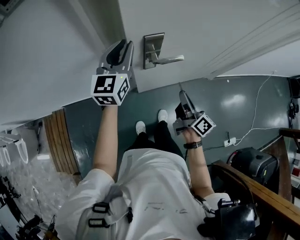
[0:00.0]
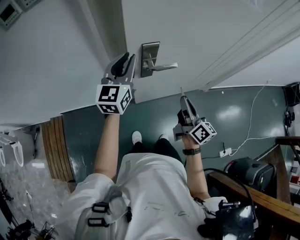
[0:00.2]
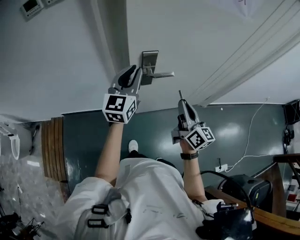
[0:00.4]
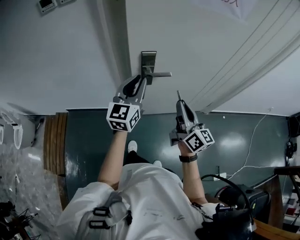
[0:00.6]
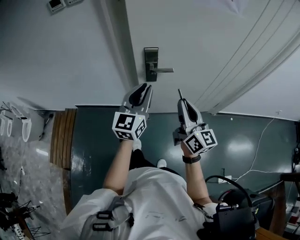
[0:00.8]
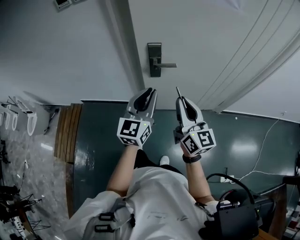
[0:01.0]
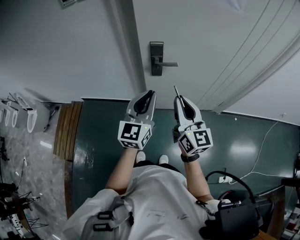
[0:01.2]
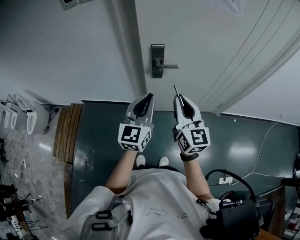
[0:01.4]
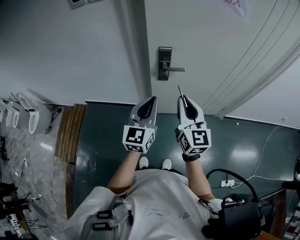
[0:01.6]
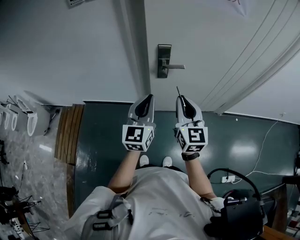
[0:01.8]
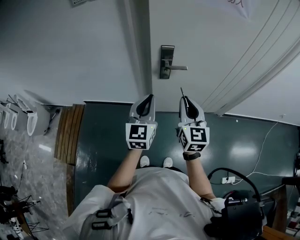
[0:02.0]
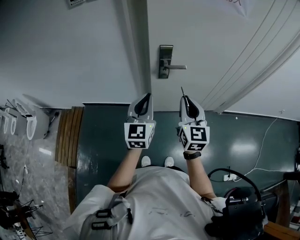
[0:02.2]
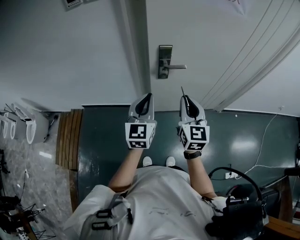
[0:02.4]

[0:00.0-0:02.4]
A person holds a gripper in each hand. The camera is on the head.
0:00.0 to 0:01.2: The right gripper travels upward and backward by some 25 cm, and twists roughly 40 degrees counterclockwise, seen from behind. The left gripper travels backward and to the right by approximately 30 cm.
0:01.2 to 0:02.4: The right gripper changes place by about 5 cm, and swivels about 20 degrees, while the left gripper heads to the left, covering some 10 cm.

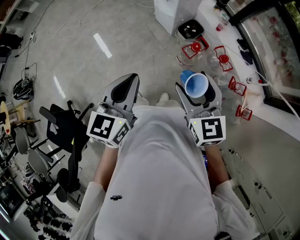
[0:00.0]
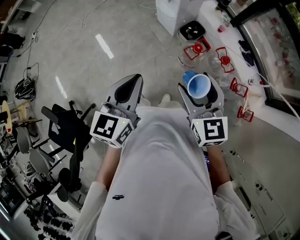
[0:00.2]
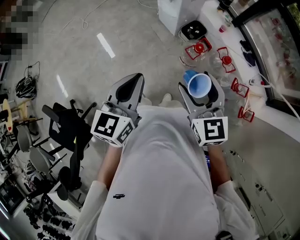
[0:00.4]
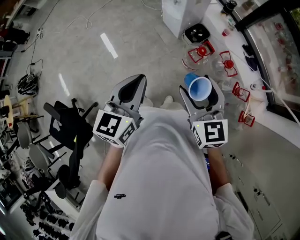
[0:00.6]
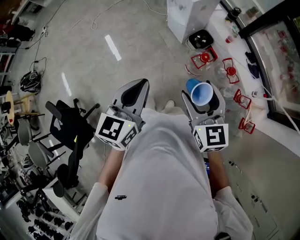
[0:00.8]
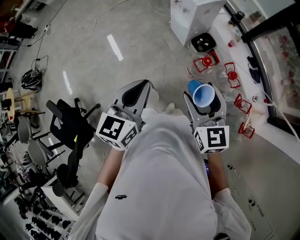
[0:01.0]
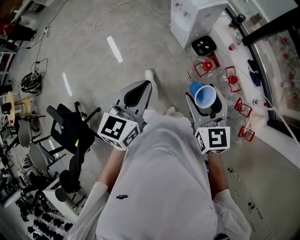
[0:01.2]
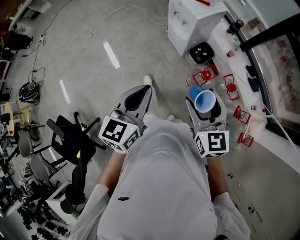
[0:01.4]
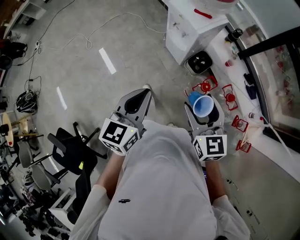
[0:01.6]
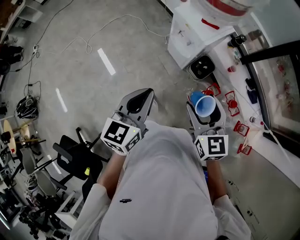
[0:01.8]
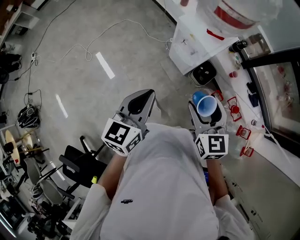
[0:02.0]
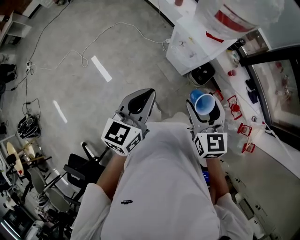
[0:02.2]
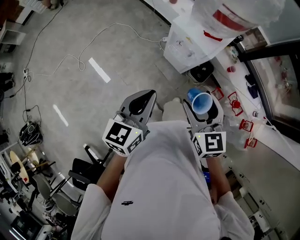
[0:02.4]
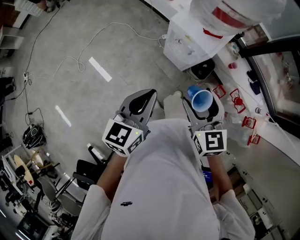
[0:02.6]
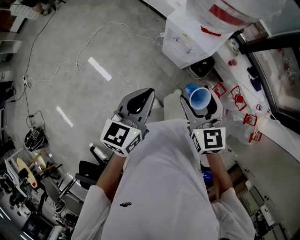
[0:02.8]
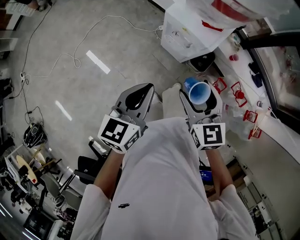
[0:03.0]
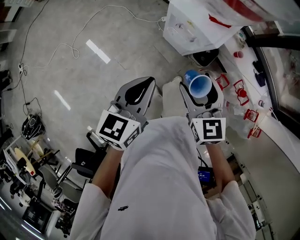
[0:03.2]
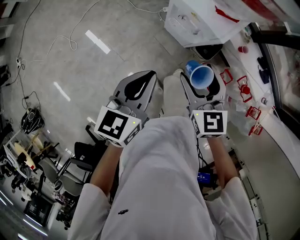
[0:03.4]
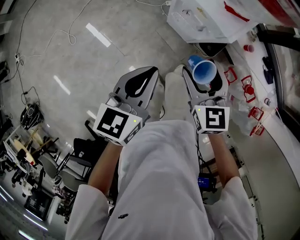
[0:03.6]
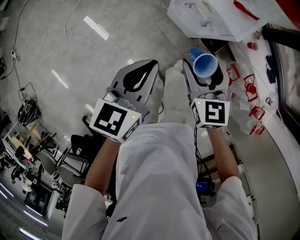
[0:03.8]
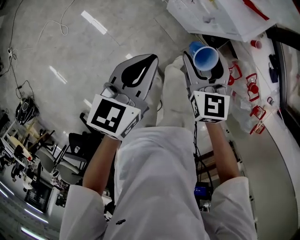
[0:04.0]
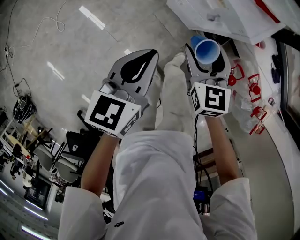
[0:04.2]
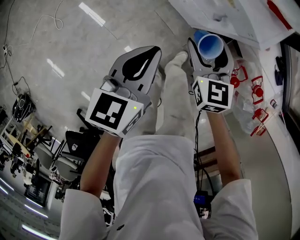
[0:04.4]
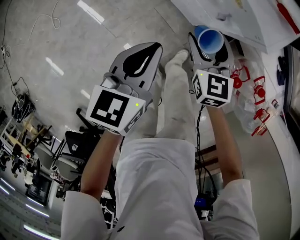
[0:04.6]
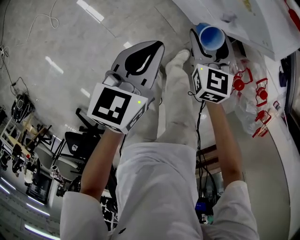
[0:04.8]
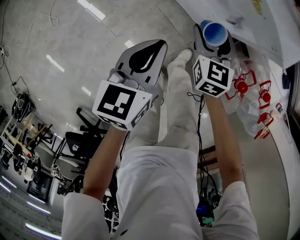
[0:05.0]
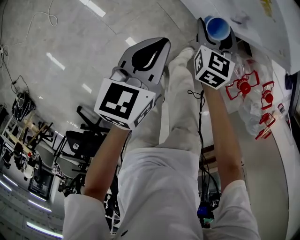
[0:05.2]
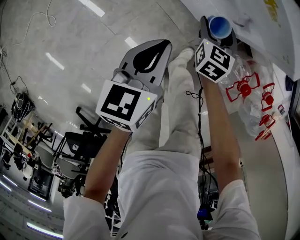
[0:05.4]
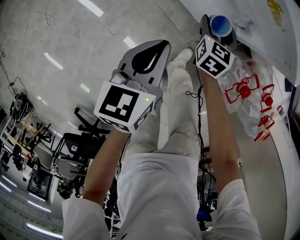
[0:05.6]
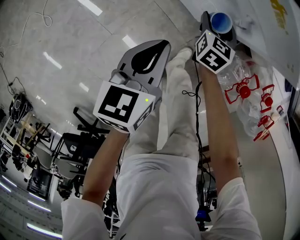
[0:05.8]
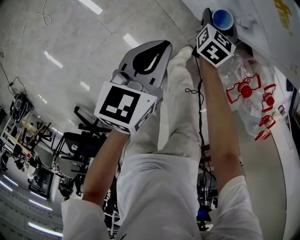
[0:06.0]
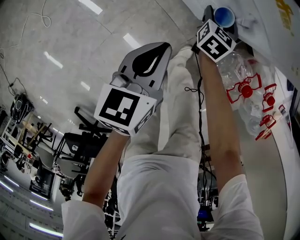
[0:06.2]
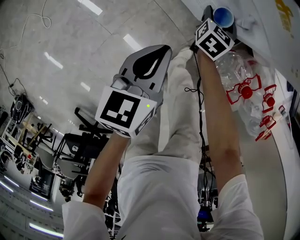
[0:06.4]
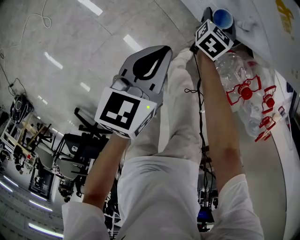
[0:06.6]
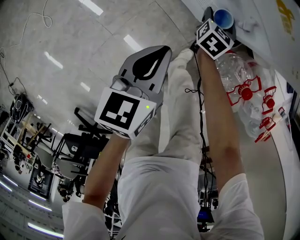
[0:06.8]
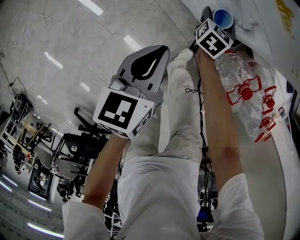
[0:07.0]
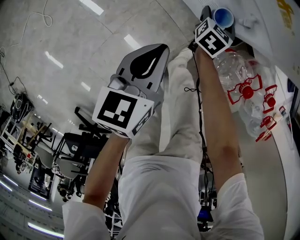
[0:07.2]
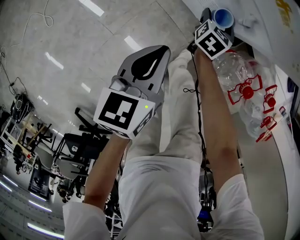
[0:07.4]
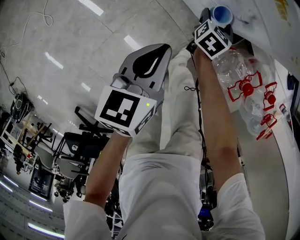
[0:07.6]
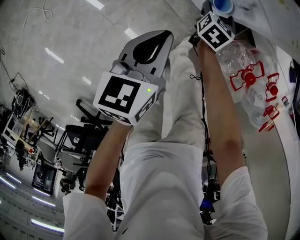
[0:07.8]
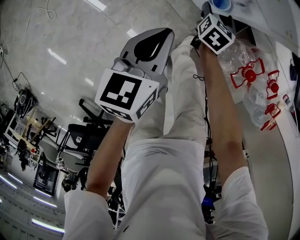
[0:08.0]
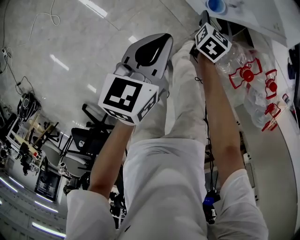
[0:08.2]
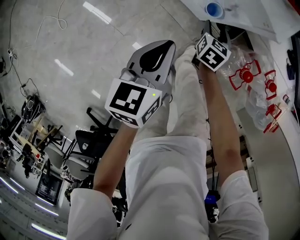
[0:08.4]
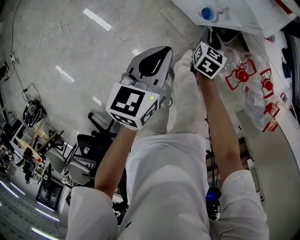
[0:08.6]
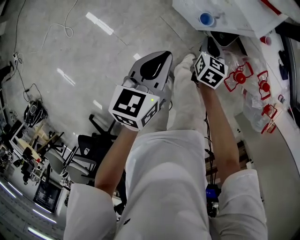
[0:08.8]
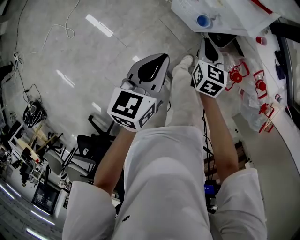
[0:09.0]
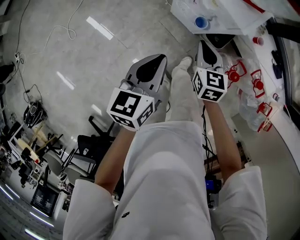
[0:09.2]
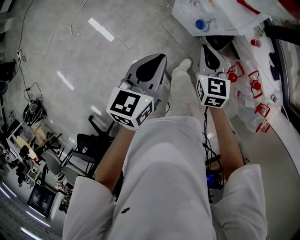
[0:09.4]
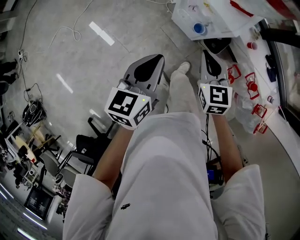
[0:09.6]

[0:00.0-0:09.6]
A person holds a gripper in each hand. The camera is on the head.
0:00.0 to 0:01.6: Both grippers travel together forward, approximately 20 cm.
0:01.6 to 0:03.2: The grippers both shift forward and to the left by approximately 25 cm.
0:03.2 to 0:04.8: The right gripper heads downward and forward, covering approximately 35 cm. Meanwhile the left gripper goes approximately 25 cm downward.
0:04.8 to 0:06.4: The left gripper heads downward, covering about 10 cm. Meanwhile the right gripper is displaced downward and forward by about 20 cm, and turns by approximately 30 degrees.
0:06.4 to 0:08.0: The right gripper ends up roughly 5 cm from where it was.
0:08.0 to 0:09.6: The right gripper heads upward, covering roughly 35 cm, changes its angle by roughly 40 degrees, and closes up, while the left gripper shifts approximately 20 cm upward.

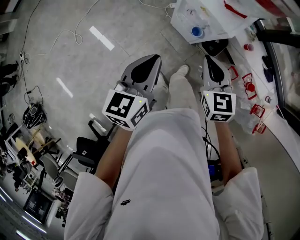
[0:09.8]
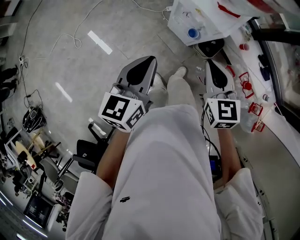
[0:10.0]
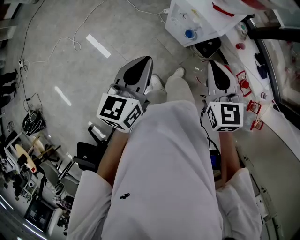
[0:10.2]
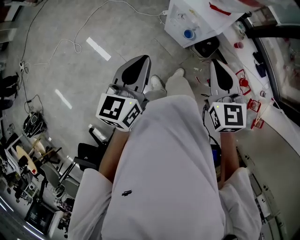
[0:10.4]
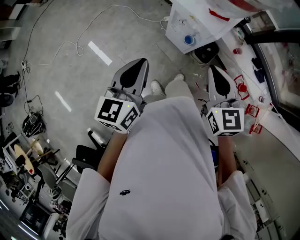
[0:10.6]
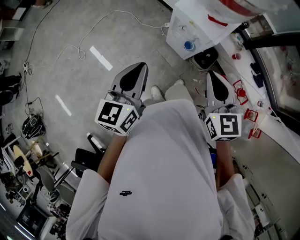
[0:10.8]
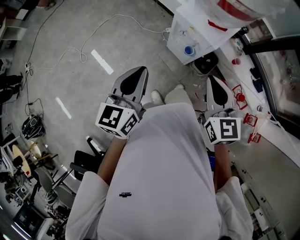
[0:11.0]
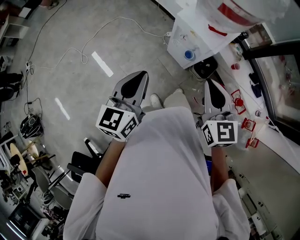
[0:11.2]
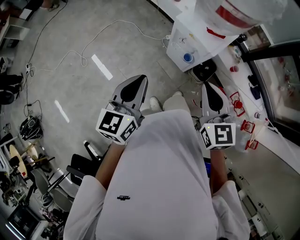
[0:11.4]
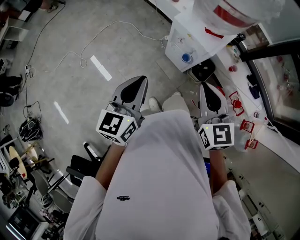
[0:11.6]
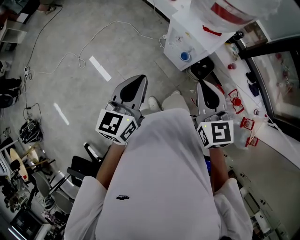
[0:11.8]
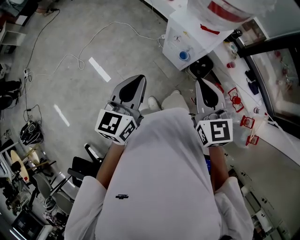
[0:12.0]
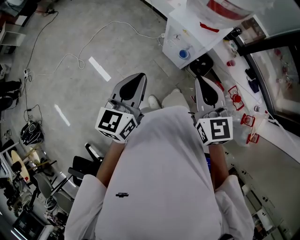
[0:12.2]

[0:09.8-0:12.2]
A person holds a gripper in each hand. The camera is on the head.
0:09.8 to 0:11.0: The left gripper heads upward, covering roughly 10 cm, while the right gripper shifts some 15 cm upward and backward.
0:11.0 to 0:12.2: The grippers move only a little.

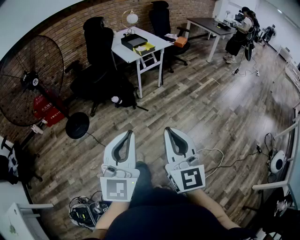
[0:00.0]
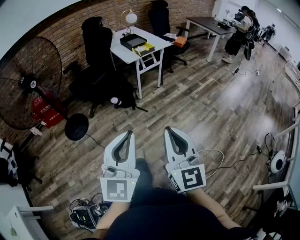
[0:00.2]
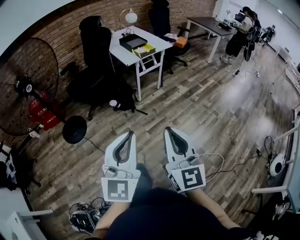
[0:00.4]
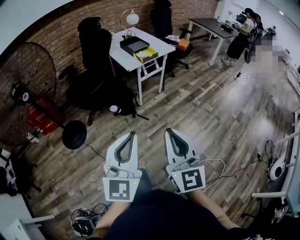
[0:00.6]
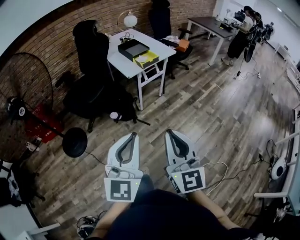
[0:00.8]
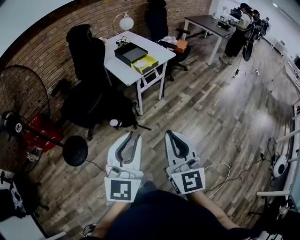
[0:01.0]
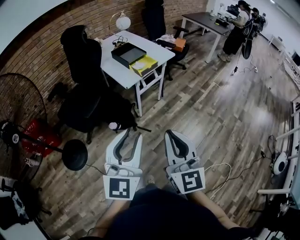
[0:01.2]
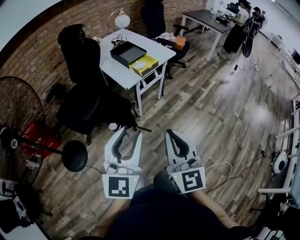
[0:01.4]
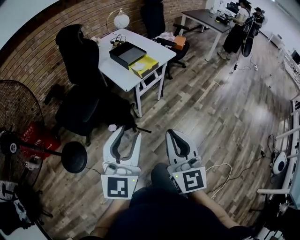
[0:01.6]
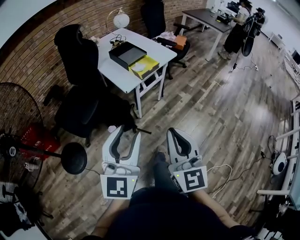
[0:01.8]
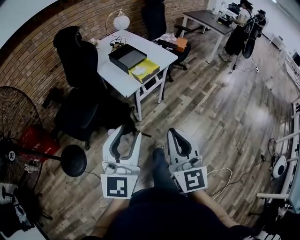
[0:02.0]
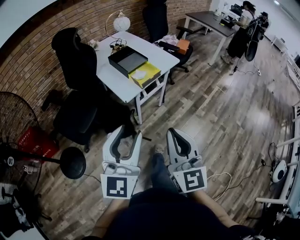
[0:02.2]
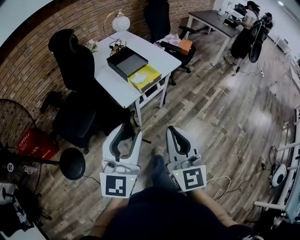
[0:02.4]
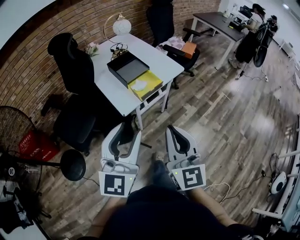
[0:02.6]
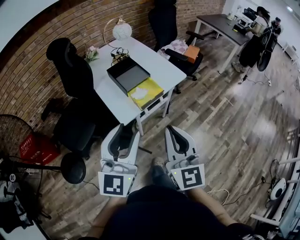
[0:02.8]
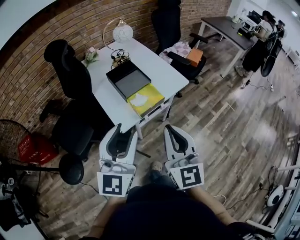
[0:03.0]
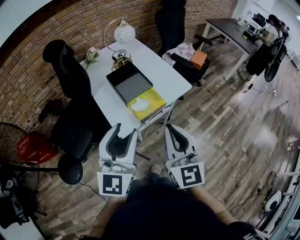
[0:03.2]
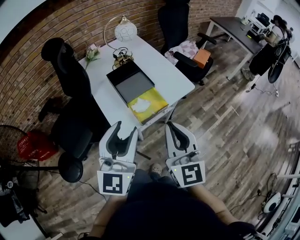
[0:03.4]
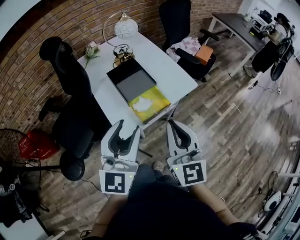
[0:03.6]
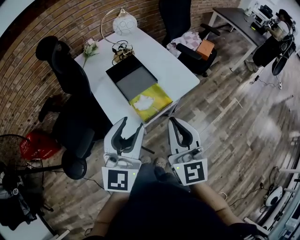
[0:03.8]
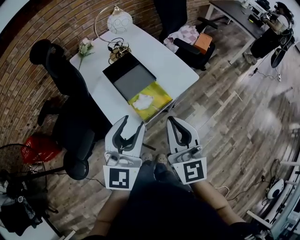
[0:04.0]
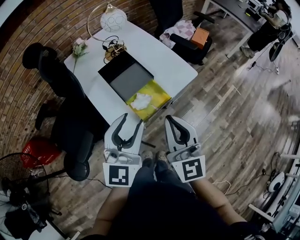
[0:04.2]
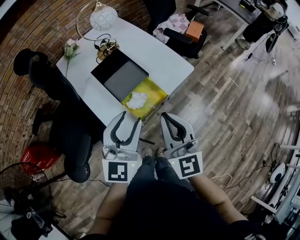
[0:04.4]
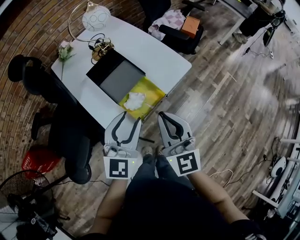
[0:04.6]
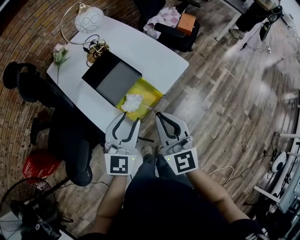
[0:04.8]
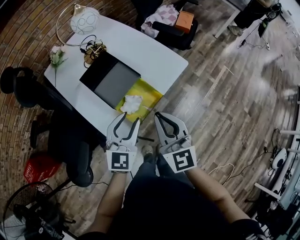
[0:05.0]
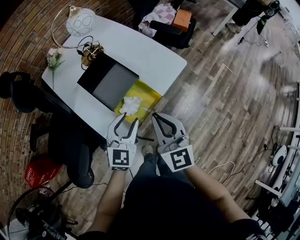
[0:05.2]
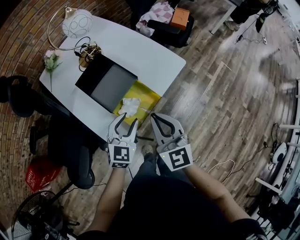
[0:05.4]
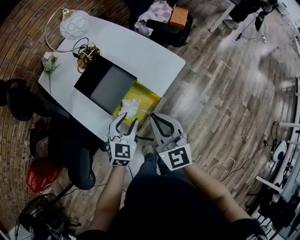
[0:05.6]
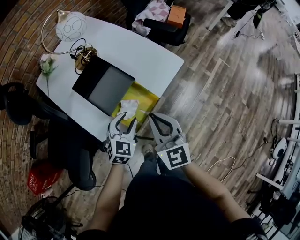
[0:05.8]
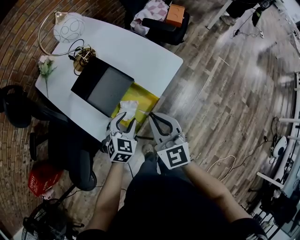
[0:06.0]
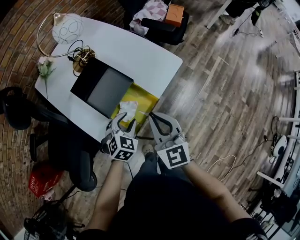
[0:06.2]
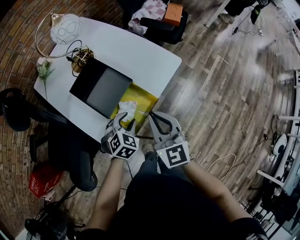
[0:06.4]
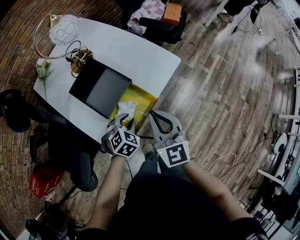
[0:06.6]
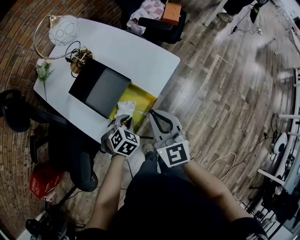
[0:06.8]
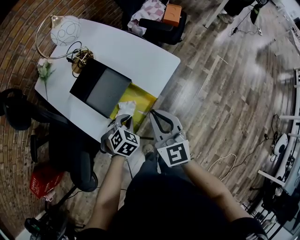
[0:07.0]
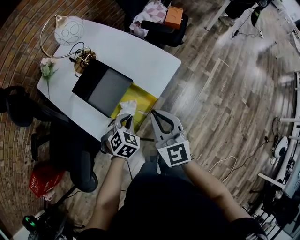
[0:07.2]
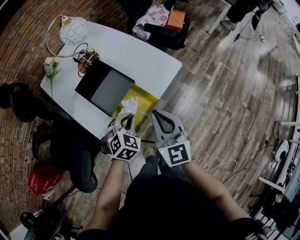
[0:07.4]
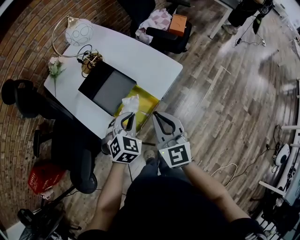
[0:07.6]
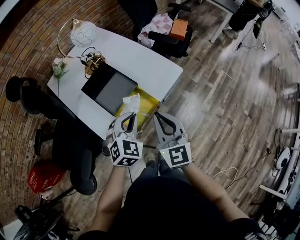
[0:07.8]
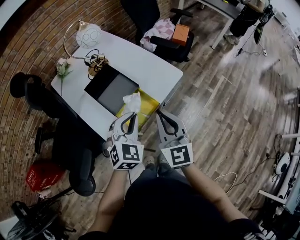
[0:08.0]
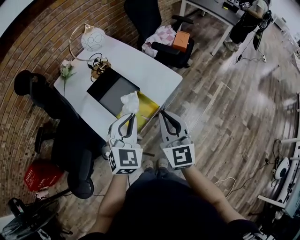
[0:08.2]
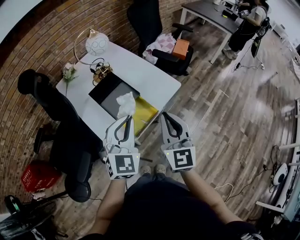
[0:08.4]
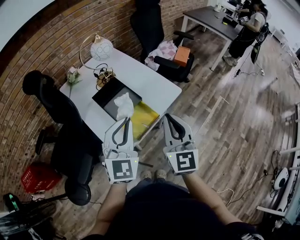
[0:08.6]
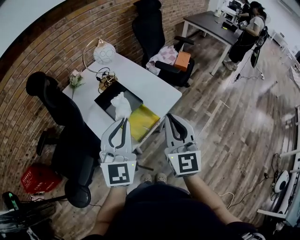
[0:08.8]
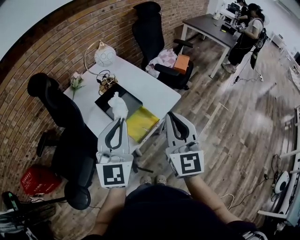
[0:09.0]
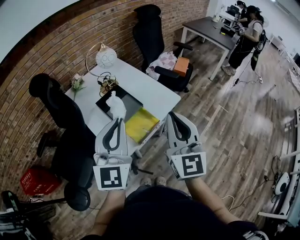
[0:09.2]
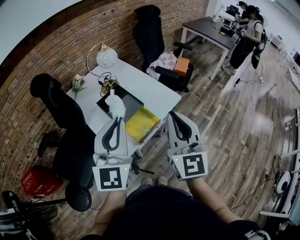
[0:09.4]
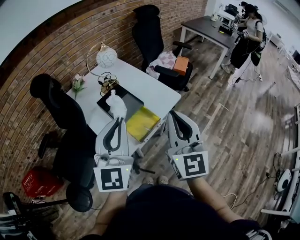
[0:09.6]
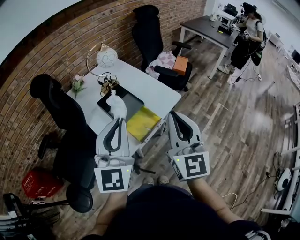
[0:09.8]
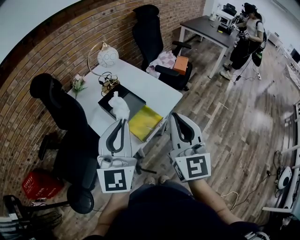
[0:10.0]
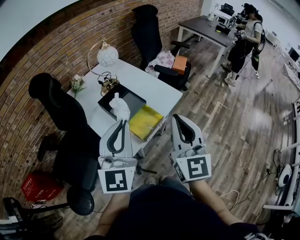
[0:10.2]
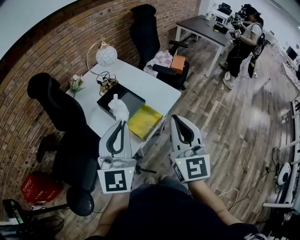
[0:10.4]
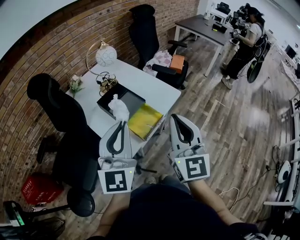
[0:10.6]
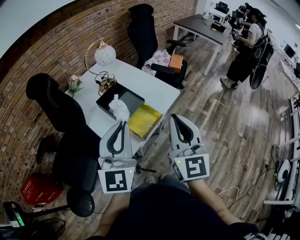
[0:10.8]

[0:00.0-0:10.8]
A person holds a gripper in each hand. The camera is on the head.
0:00.0 to 0:01.6: The two grippers travel together, forward, roughly 40 cm. The left gripper opens its fingers.
0:01.6 to 0:03.0: Both grippers travel together forward, approximately 35 cm.
0:03.0 to 0:04.6: The two grippers go some 20 cm forward and downward.
0:04.6 to 0:06.2: The left gripper goes approximately 20 cm downward, and angles its fingers downward, by approximately 40 degrees. The right gripper moves downward and forward, roughly 10 cm.
0:06.2 to 0:07.8: The left gripper moves upward, roughly 10 cm, and closes up; the right gripper ends up approximately 5 cm from where it was.
0:07.8 to 0:09.2: The grippers both shift upward by approximately 20 cm. The left gripper tips its fingers upward by about 40 degrees.
0:09.2 to 0:10.8: The right gripper changes place by about 5 cm.
